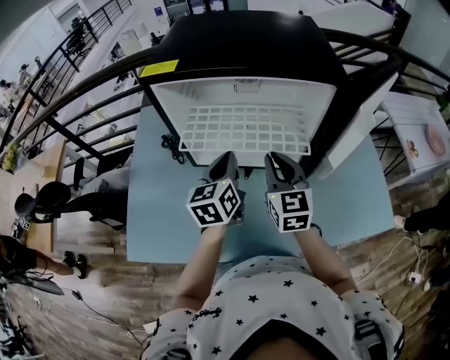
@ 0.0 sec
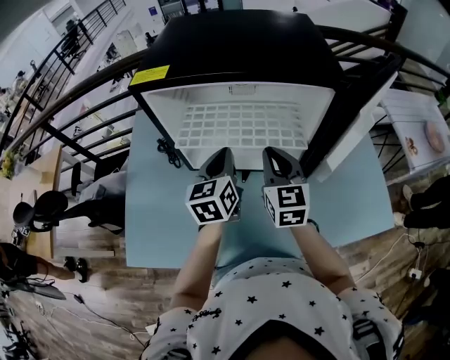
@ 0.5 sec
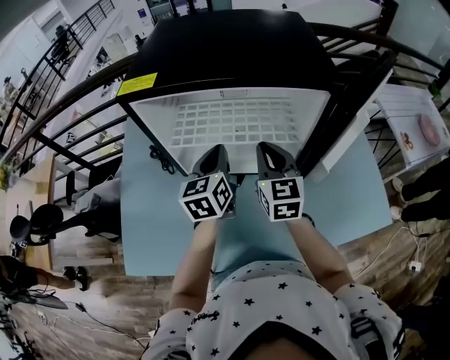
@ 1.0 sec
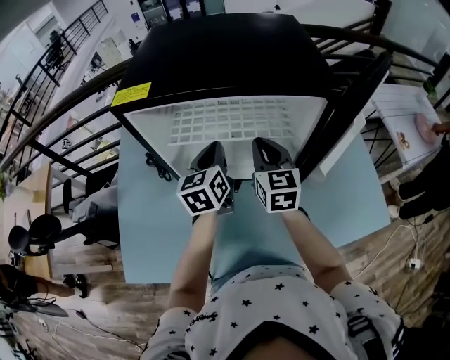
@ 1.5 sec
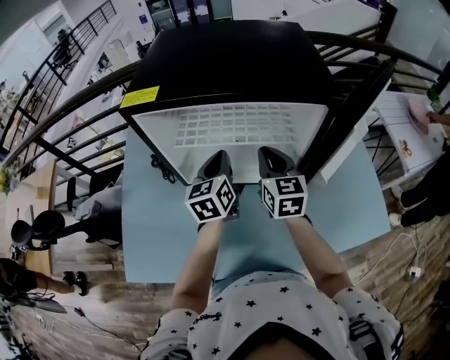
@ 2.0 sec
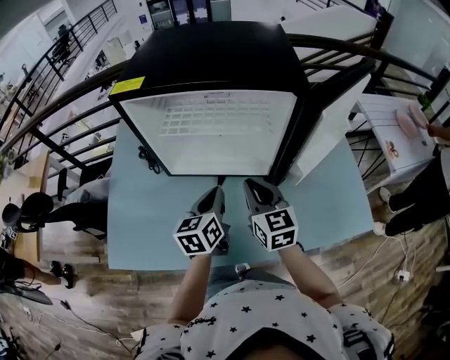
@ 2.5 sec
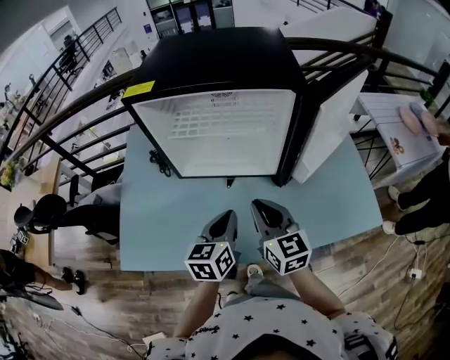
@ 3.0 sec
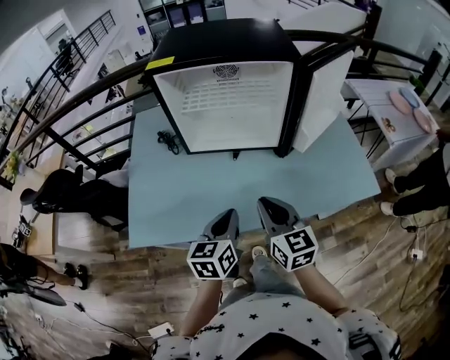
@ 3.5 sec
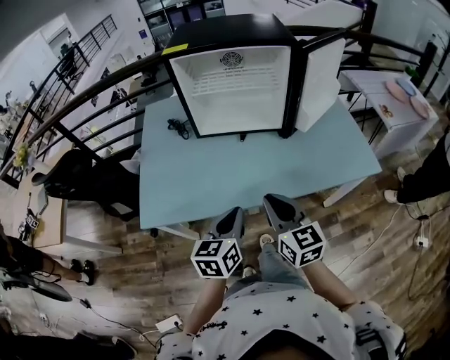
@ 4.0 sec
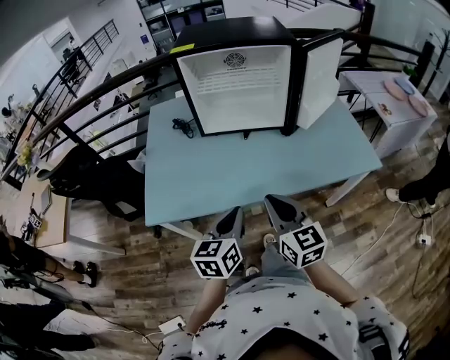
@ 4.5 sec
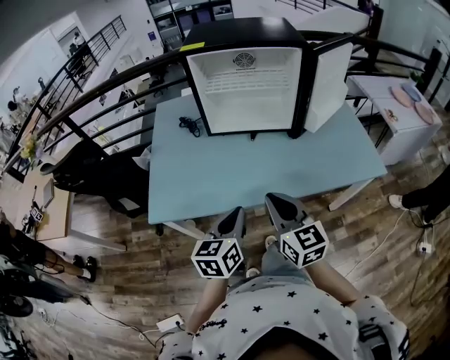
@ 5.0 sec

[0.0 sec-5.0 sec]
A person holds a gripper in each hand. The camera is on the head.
0.0 sec to 2.5 sec: The right gripper reaches some 10 cm forward, then returns, while the left gripper moves backward and downward, approximately 10 cm.
2.5 sec to 5.0 sec: The two grippers go about 30 cm backward.

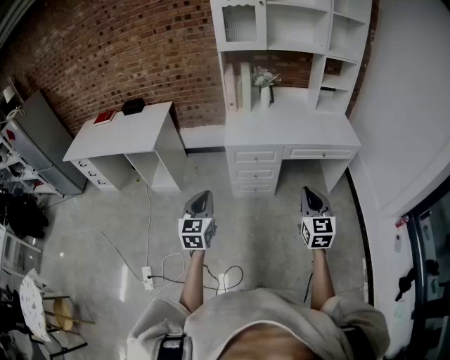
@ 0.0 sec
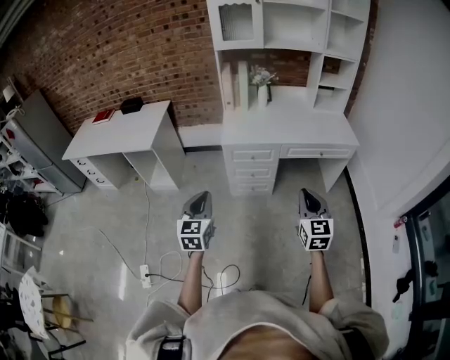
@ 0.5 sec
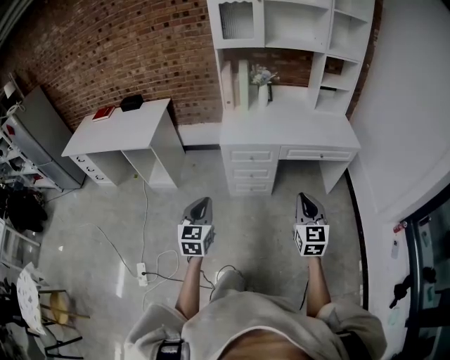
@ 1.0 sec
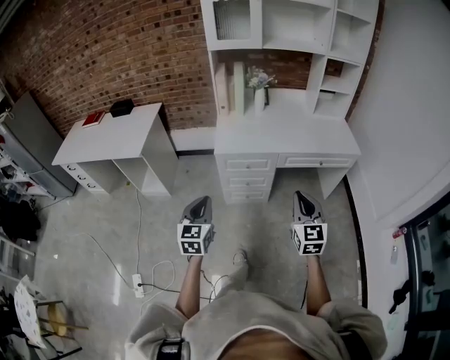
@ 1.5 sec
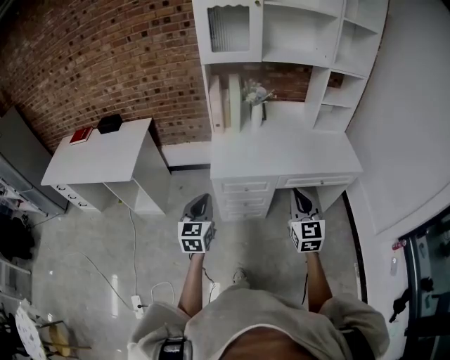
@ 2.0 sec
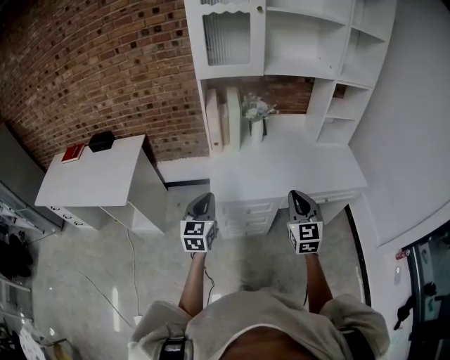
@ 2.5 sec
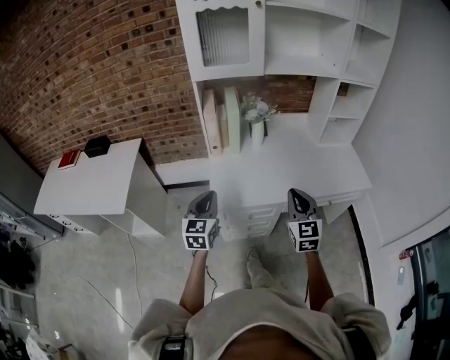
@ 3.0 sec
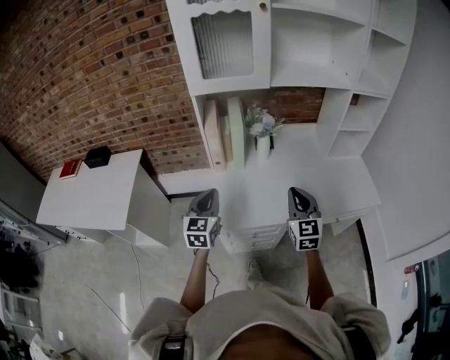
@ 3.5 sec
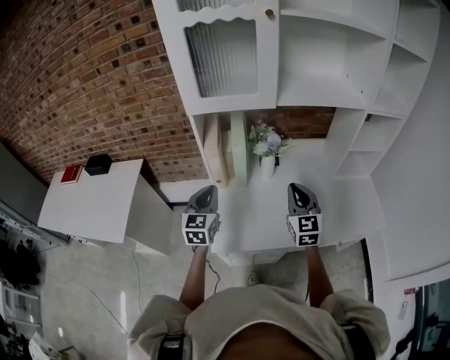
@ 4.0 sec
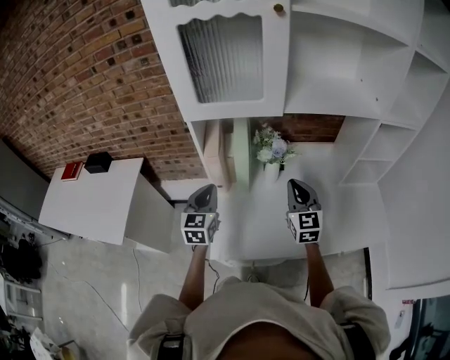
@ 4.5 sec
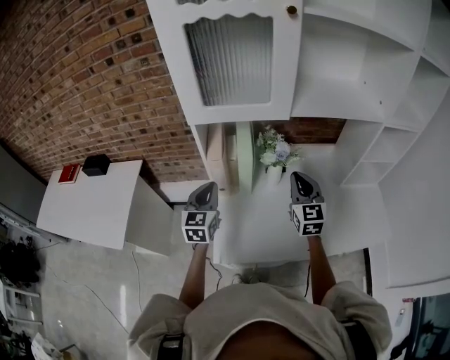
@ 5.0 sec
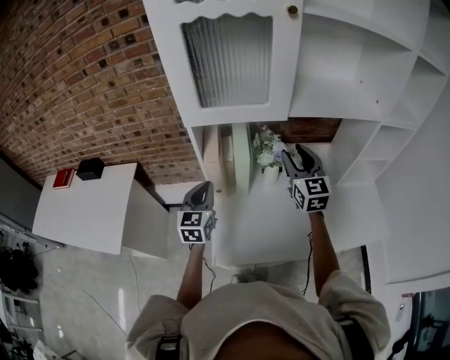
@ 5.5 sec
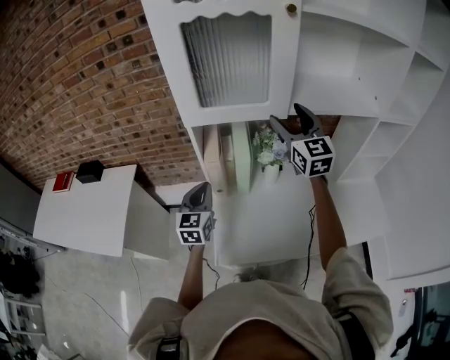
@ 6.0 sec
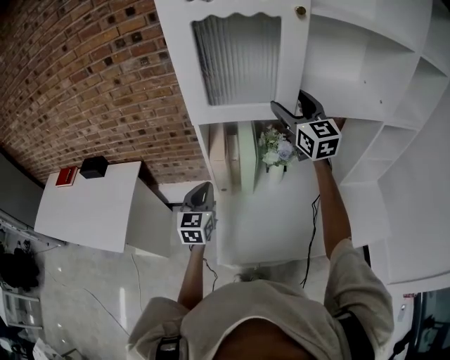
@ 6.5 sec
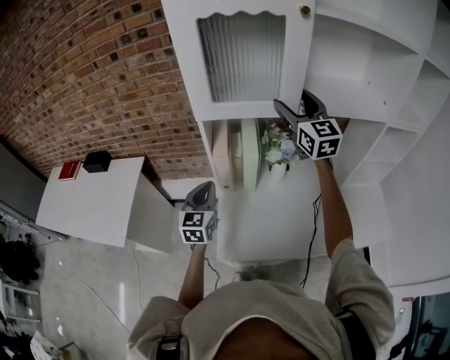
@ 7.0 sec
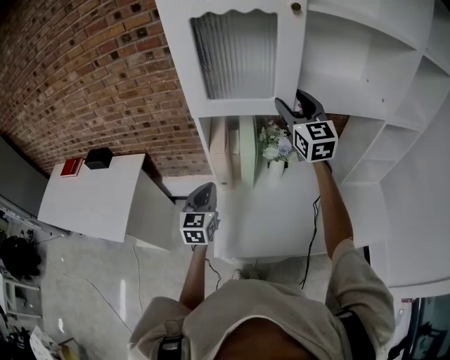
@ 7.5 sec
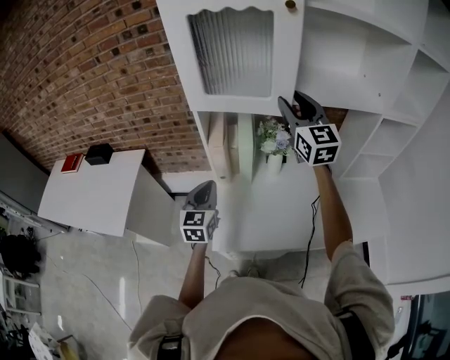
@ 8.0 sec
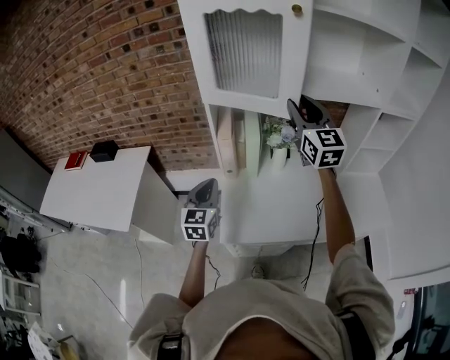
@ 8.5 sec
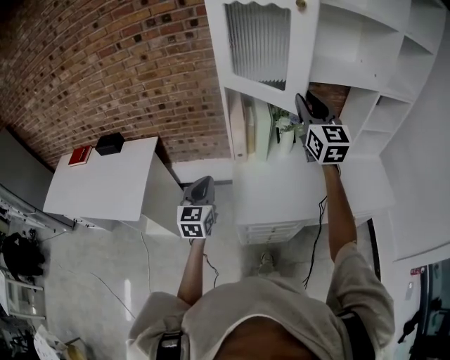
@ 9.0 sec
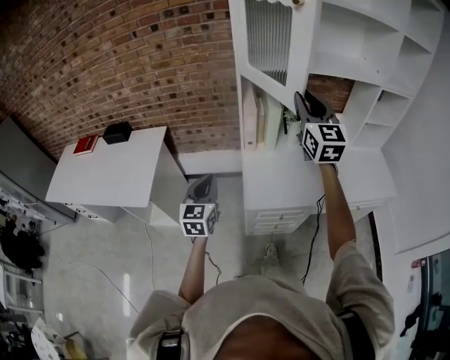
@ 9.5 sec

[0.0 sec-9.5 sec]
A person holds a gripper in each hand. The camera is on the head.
0.0 sec to 2.0 sec: Both grippers move forward, about 25 cm.
2.0 sec to 4.0 sec: The pair of grippers is taken forward, some 40 cm.
4.0 sec to 5.5 sec: The right gripper goes some 15 cm forward and upward, and opens its fingers. Meanwhile the left gripper heads forward, covering about 10 cm.
5.5 sec to 7.5 sec: The right gripper travels upward and forward by about 15 cm.
7.5 sec to 9.5 sec: Both grippers travel together backward and to the left, some 25 cm. The right gripper closes its fingers.

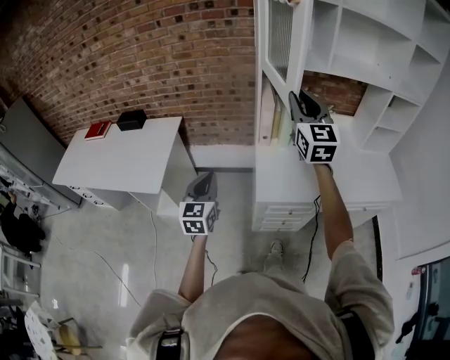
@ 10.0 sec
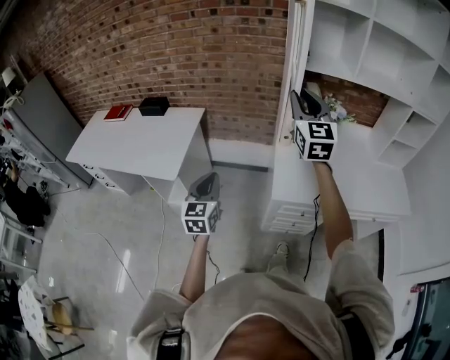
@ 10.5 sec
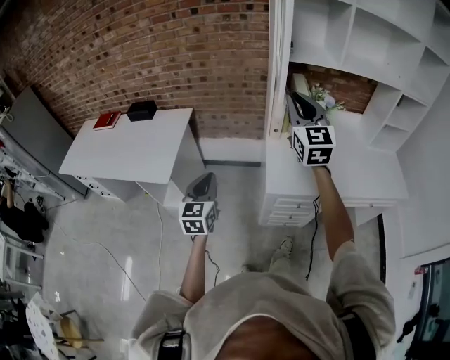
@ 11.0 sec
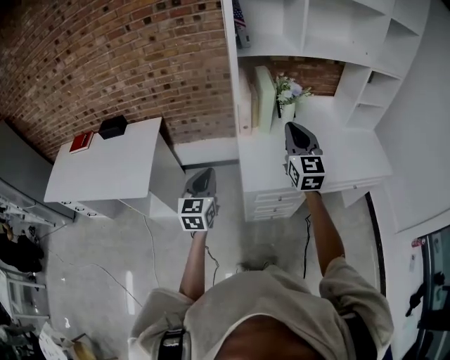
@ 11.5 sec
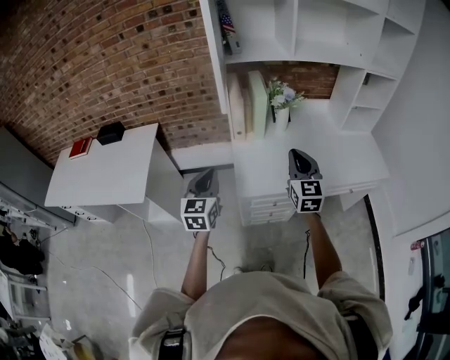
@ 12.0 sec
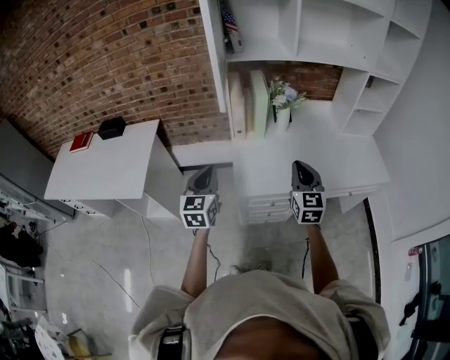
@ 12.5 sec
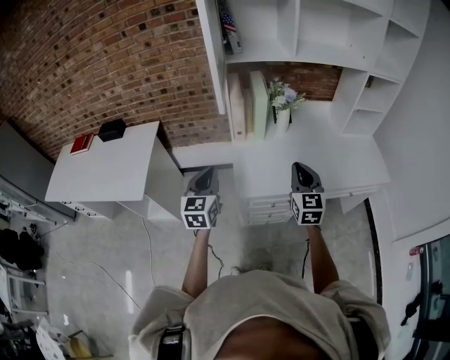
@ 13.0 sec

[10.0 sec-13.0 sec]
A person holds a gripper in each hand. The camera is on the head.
10.0 sec to 11.5 sec: The right gripper heads downward, backward and to the right, covering some 15 cm.
11.5 sec to 13.0 sec: The left gripper moves to the right, about 5 cm, while the right gripper travels downward and to the right by about 15 cm.

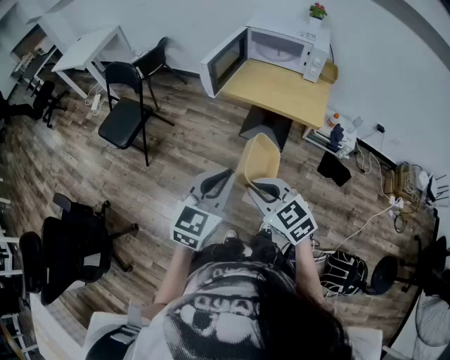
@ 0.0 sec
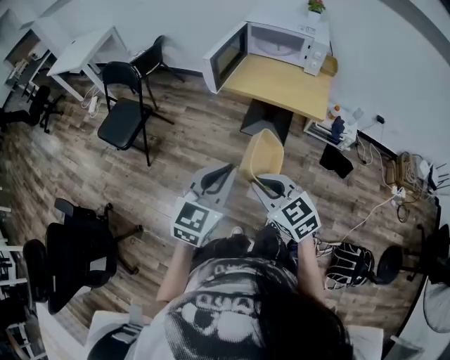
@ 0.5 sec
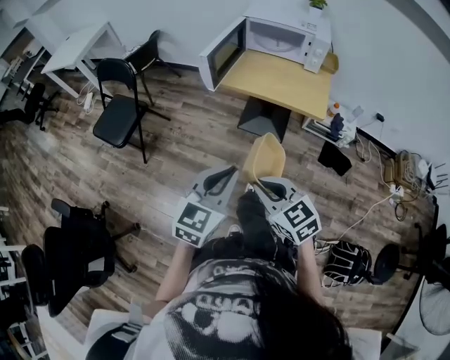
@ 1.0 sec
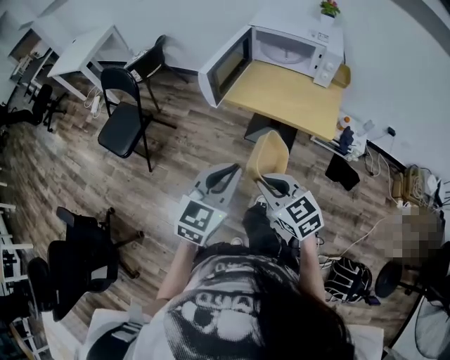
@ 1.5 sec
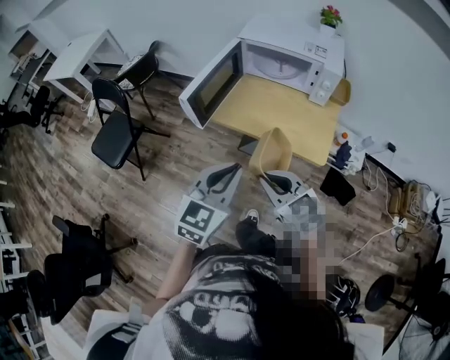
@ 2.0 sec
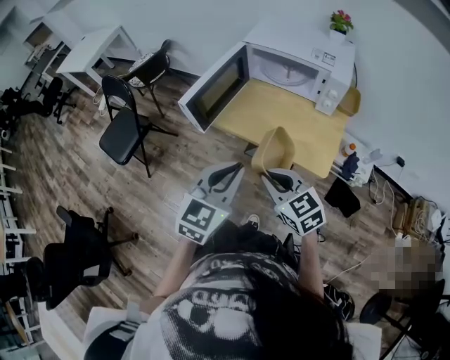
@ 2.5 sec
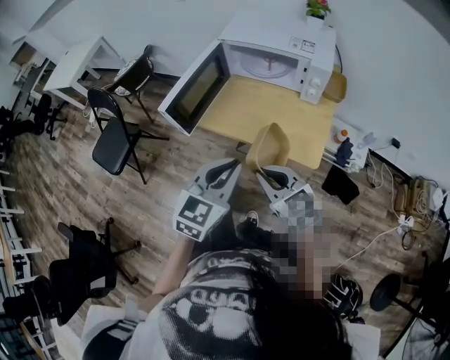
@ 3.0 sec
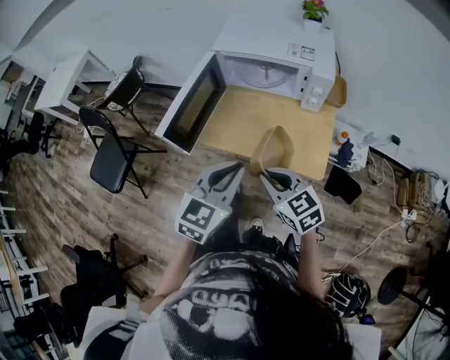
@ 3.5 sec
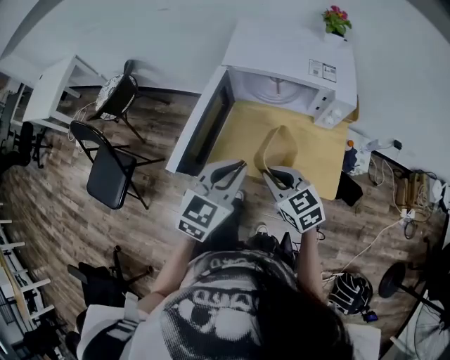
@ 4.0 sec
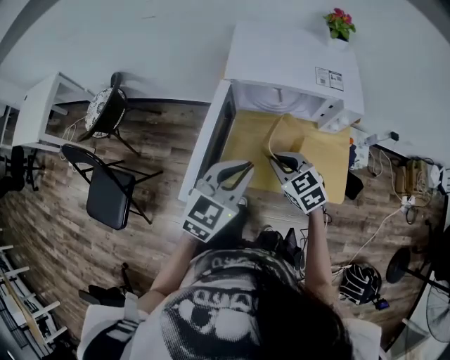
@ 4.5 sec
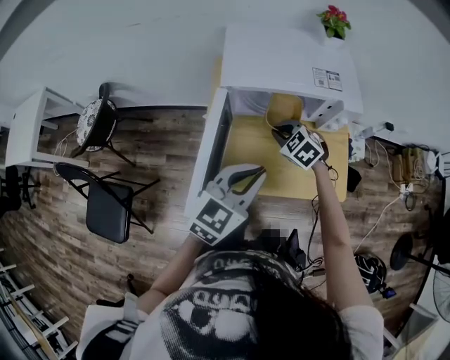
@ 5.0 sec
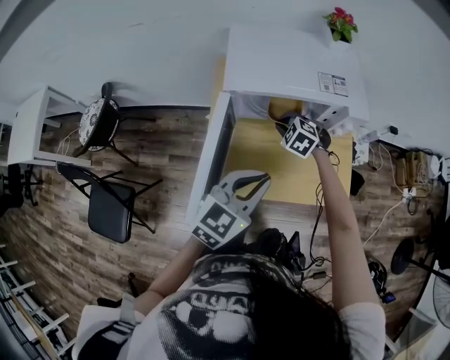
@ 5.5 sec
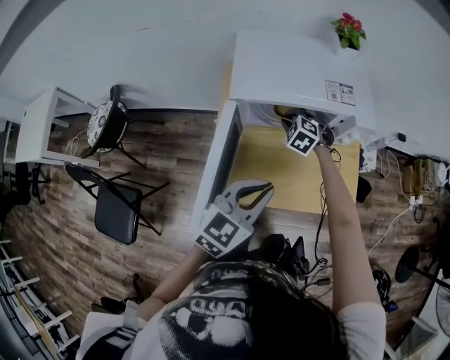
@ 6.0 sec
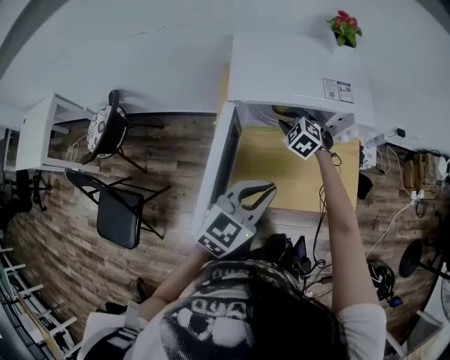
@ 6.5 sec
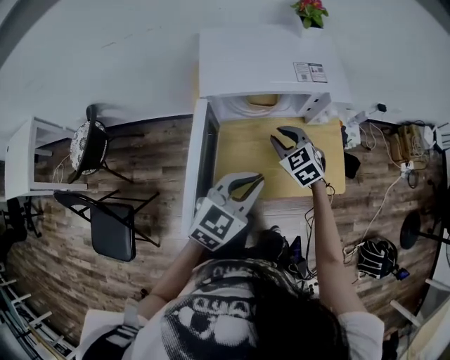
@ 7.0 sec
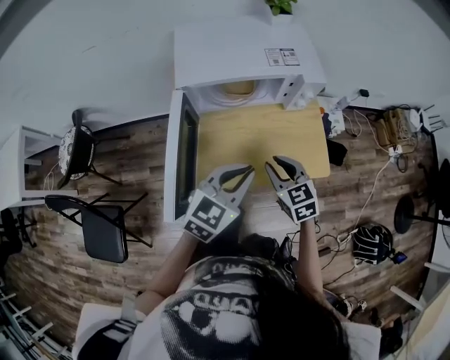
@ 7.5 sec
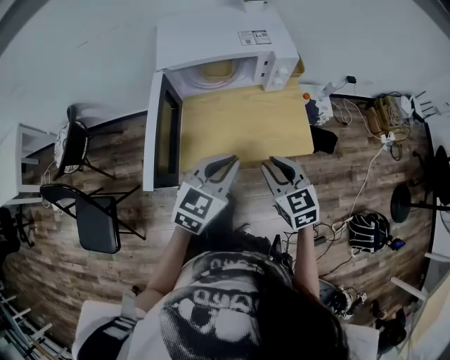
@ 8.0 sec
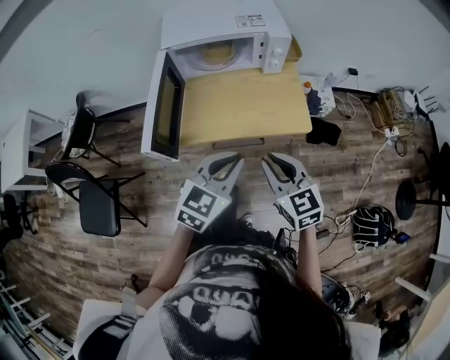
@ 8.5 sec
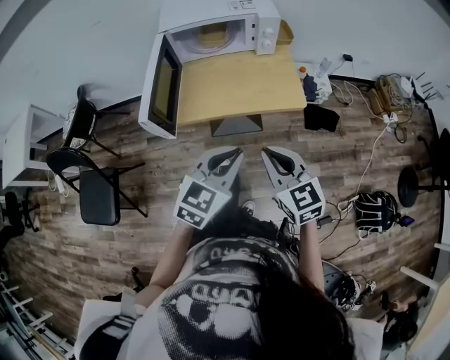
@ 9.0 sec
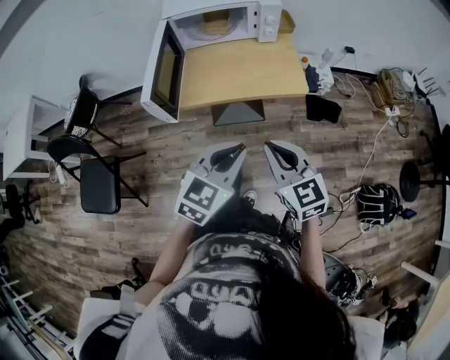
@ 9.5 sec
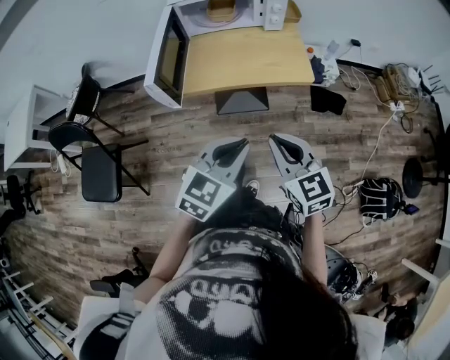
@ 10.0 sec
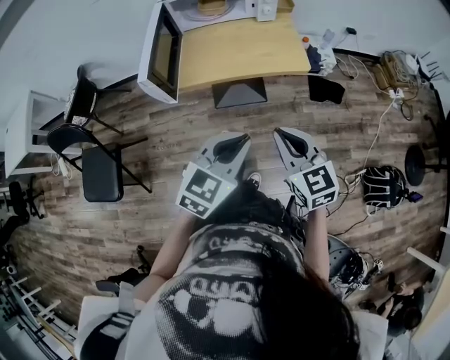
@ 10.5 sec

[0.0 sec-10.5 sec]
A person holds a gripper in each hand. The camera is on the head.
0.0 sec to 2.0 sec: The left gripper goes some 25 cm forward; the right gripper shifts some 30 cm forward and to the right.
2.0 sec to 4.0 sec: Both grippers travel together forward, about 25 cm.
4.0 sec to 6.5 sec: The right gripper is displaced forward by some 30 cm, and rotates some 40 degrees; the left gripper moves forward, approximately 10 cm, and swivels approximately 20 degrees.
6.5 sec to 8.5 sec: The left gripper heads backward and to the right, covering approximately 20 cm. Meanwhile the right gripper heads backward and to the right, covering about 40 cm, and rotates approximately 50 degrees.
8.5 sec to 10.5 sec: Both grippers travel together backward, approximately 15 cm.
